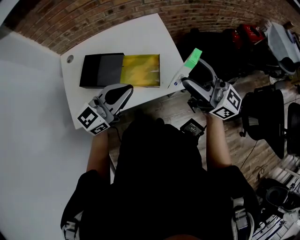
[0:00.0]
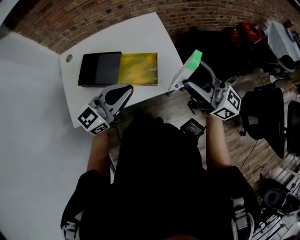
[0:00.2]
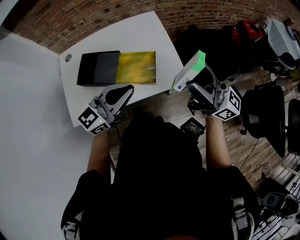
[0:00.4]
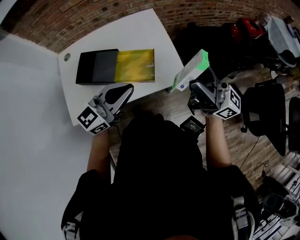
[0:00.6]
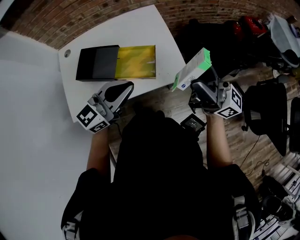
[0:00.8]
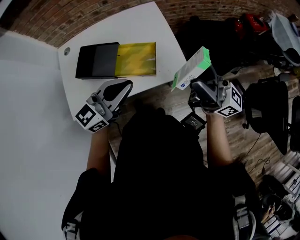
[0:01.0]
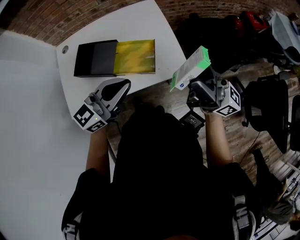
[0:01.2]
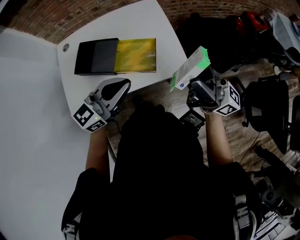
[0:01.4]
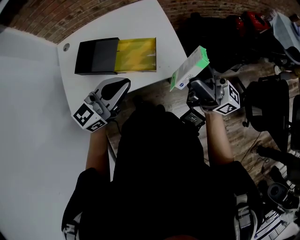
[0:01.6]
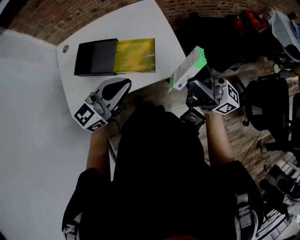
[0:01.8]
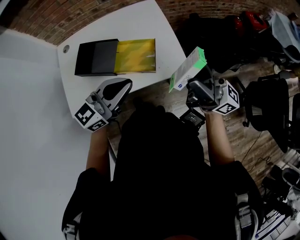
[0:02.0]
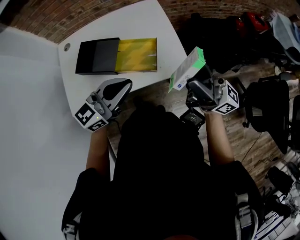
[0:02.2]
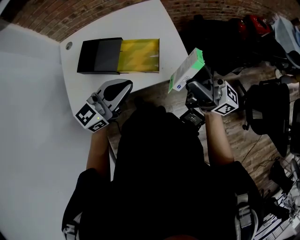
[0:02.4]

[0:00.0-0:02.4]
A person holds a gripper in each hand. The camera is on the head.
0:00.0 to 0:01.2: The right gripper is displaced to the right by about 5 cm.
0:01.2 to 0:02.4: The grippers stay close to where they were, moving slightly.

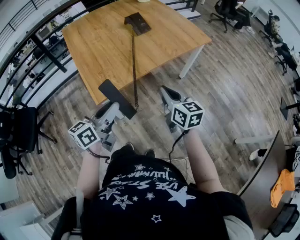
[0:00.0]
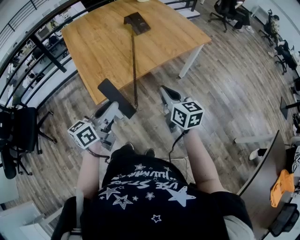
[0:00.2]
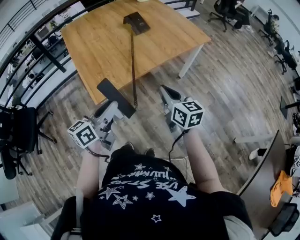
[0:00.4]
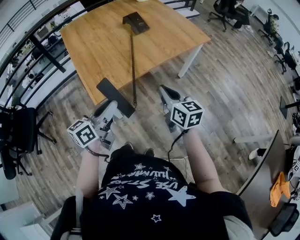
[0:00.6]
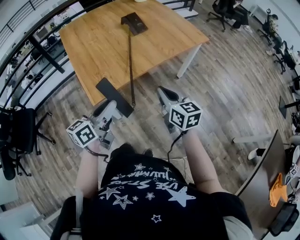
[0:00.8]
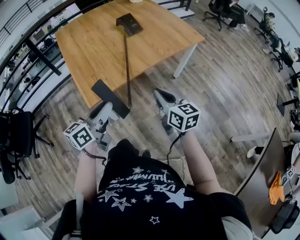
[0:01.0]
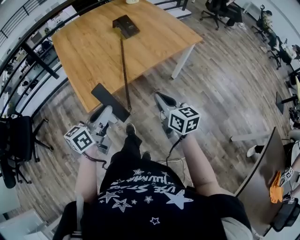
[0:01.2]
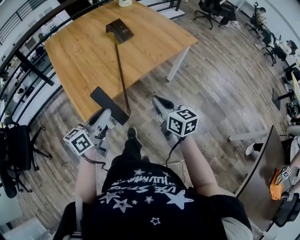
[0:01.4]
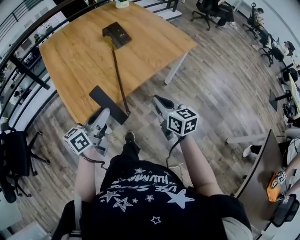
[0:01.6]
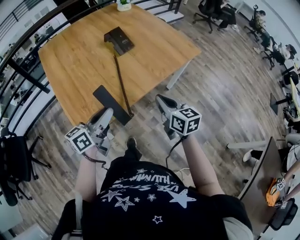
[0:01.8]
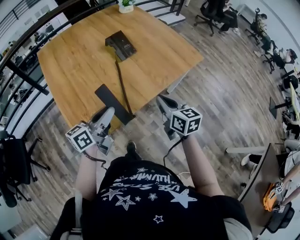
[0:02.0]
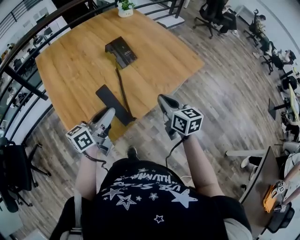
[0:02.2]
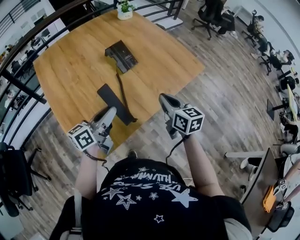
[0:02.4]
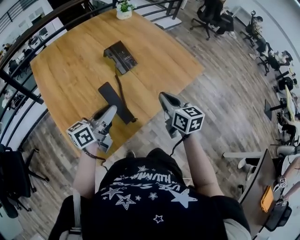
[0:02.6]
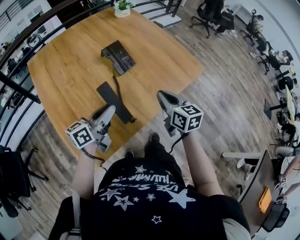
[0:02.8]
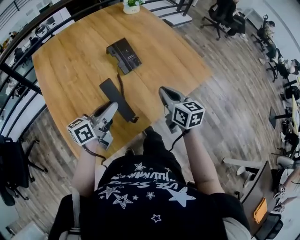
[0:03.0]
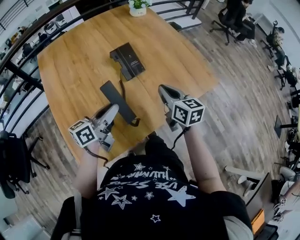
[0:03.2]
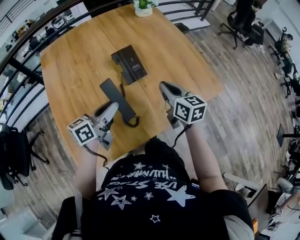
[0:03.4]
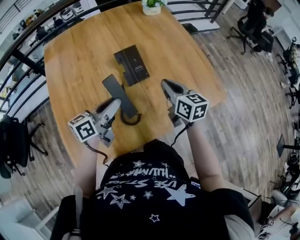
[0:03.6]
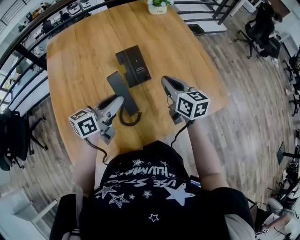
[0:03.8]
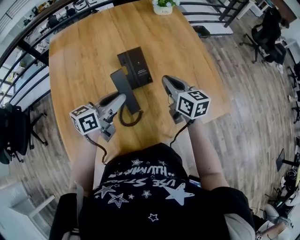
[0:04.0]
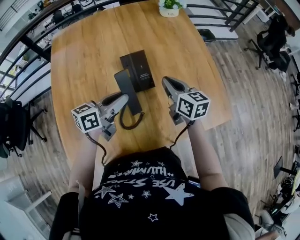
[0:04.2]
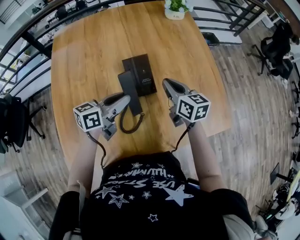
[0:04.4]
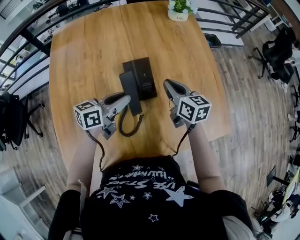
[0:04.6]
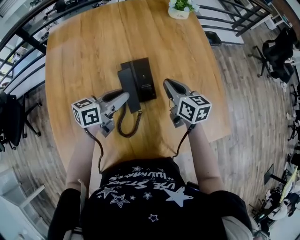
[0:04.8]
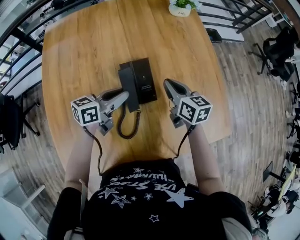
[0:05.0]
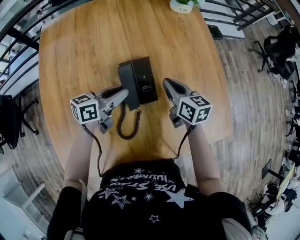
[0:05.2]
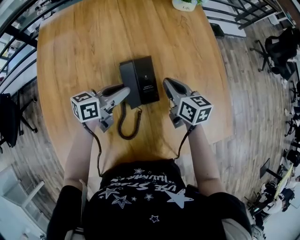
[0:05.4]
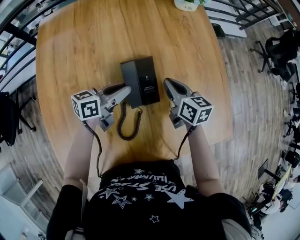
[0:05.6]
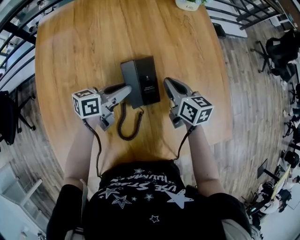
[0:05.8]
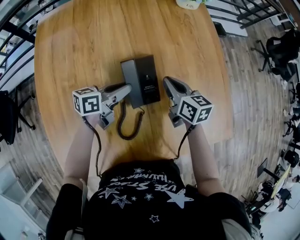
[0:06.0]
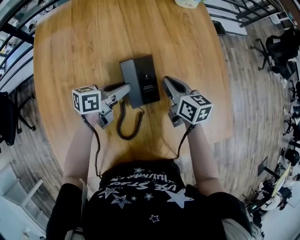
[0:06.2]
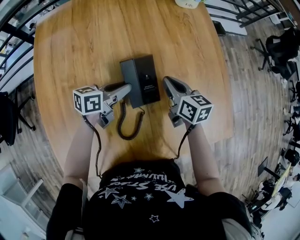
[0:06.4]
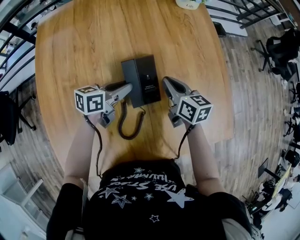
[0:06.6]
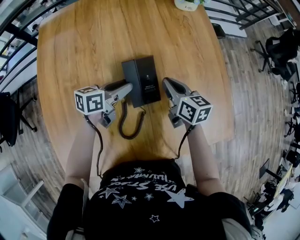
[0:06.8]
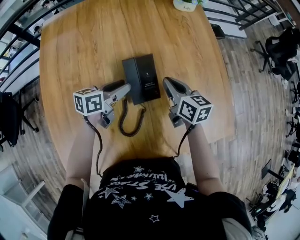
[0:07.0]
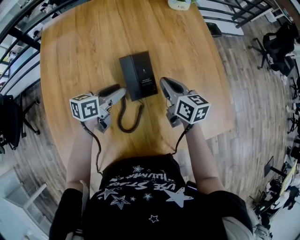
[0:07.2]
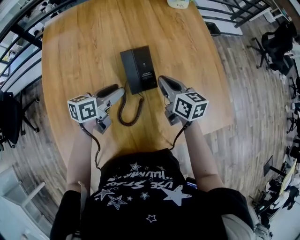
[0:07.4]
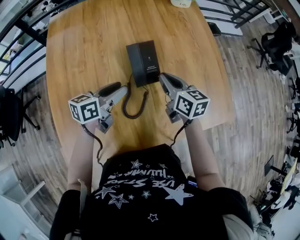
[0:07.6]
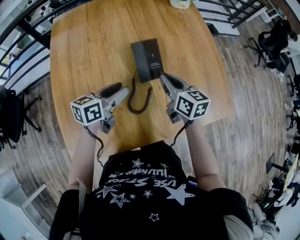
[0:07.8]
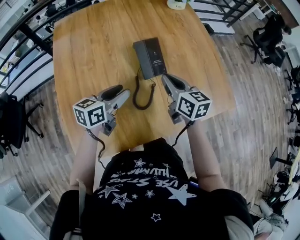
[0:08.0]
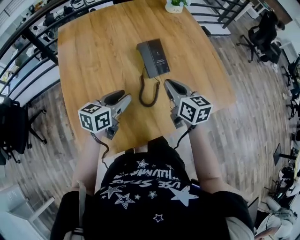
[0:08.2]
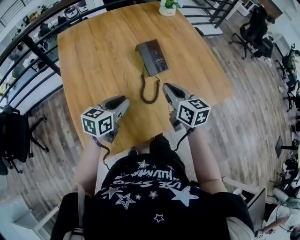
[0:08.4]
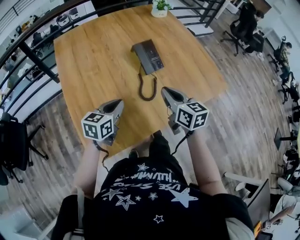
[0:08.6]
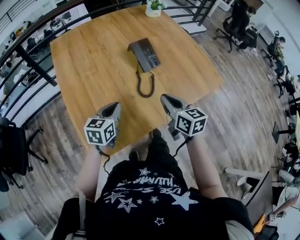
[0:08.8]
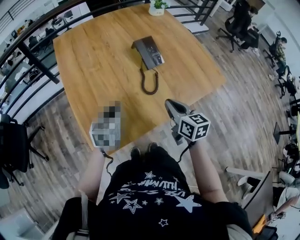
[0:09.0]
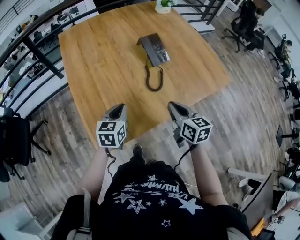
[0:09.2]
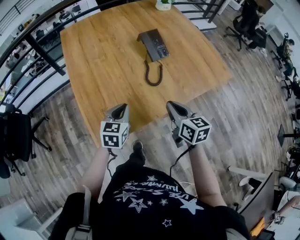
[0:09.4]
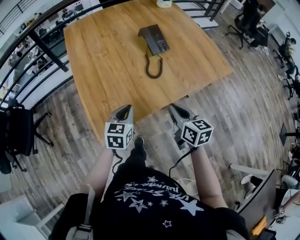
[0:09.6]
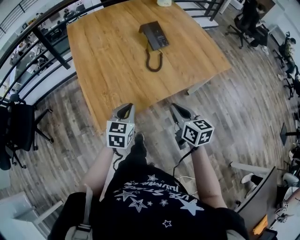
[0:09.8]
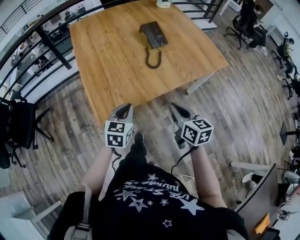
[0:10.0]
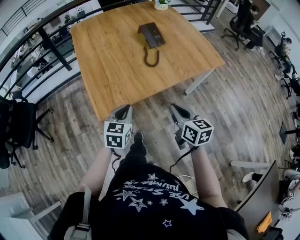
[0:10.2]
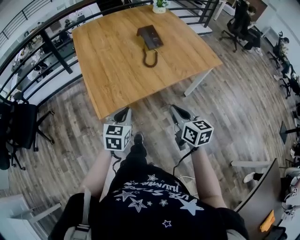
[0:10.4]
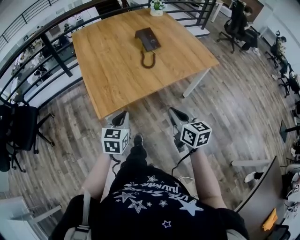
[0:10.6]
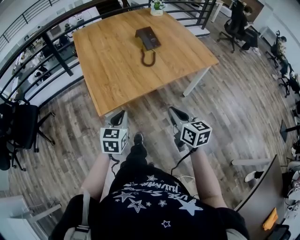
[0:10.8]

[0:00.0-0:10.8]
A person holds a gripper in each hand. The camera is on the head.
0:00.0 to 0:01.6: The two grippers go some 10 cm forward.
0:01.6 to 0:03.0: The grippers both shift forward by some 25 cm.
0:03.0 to 0:04.6: Both grippers travel together forward, about 25 cm. The right gripper swivels roughly 20 degrees.
0:04.6 to 0:06.2: The left gripper moves downward and forward, some 10 cm; the right gripper shifts some 5 cm downward.
0:06.2 to 0:07.8: Both grippers travel together backward and upward, approximately 15 cm. The left gripper opens its fingers.
0:07.8 to 0:09.2: The grippers both shift backward by some 25 cm. The left gripper swivels approximately 30 degrees, and closes its fingers.
0:09.2 to 0:10.8: The two grippers go approximately 25 cm backward.

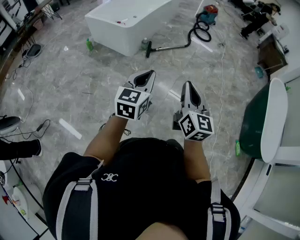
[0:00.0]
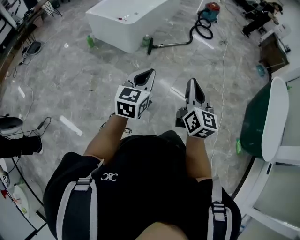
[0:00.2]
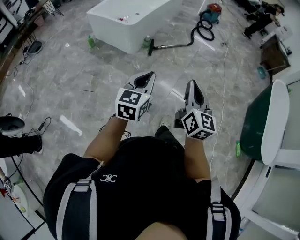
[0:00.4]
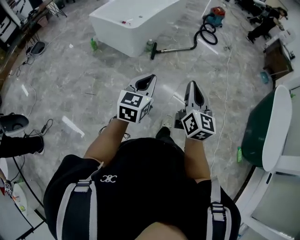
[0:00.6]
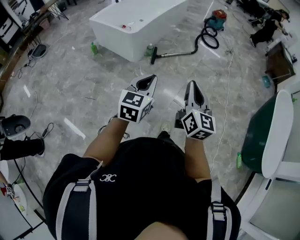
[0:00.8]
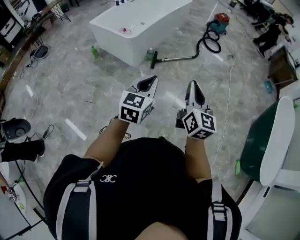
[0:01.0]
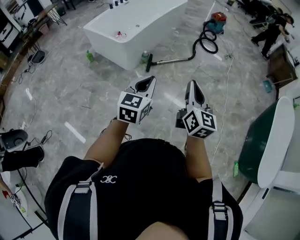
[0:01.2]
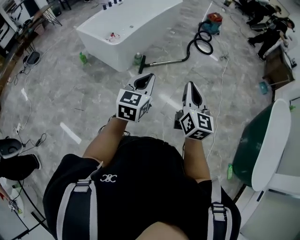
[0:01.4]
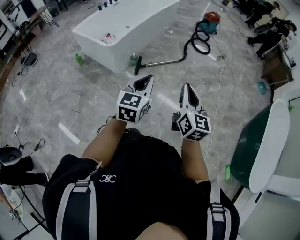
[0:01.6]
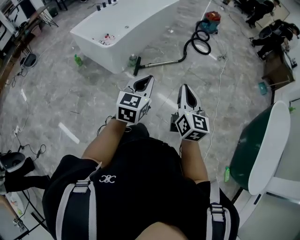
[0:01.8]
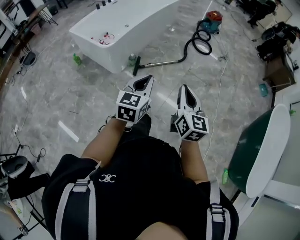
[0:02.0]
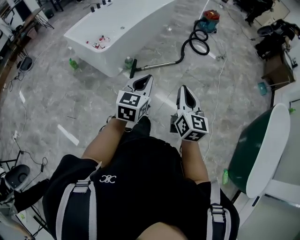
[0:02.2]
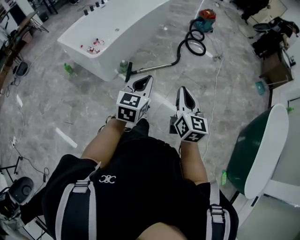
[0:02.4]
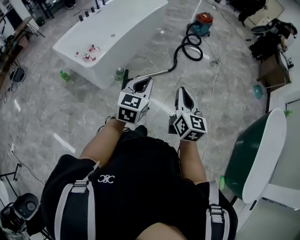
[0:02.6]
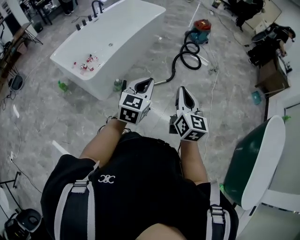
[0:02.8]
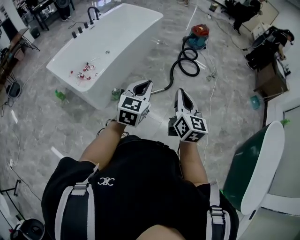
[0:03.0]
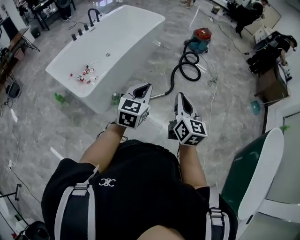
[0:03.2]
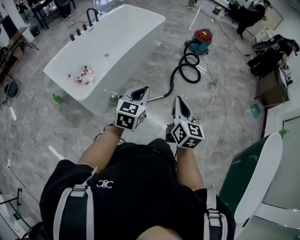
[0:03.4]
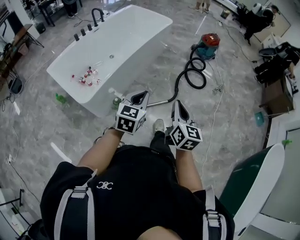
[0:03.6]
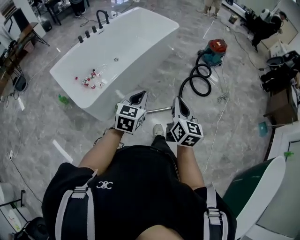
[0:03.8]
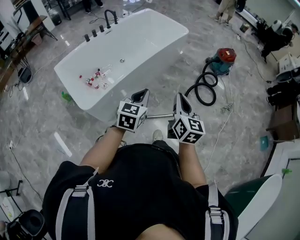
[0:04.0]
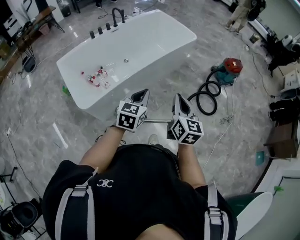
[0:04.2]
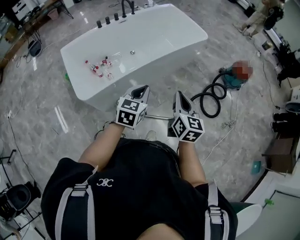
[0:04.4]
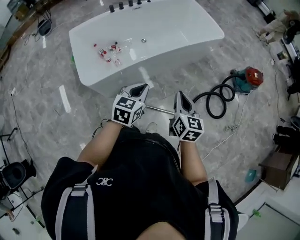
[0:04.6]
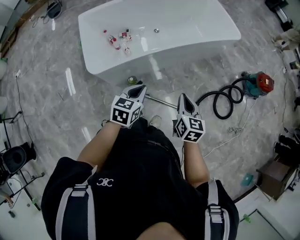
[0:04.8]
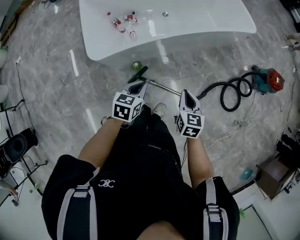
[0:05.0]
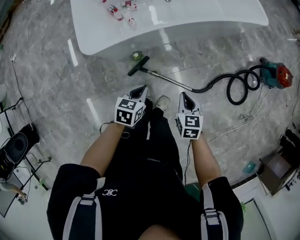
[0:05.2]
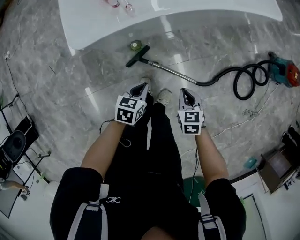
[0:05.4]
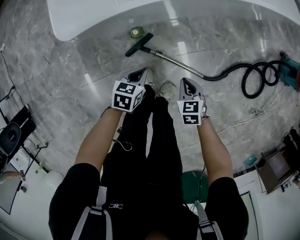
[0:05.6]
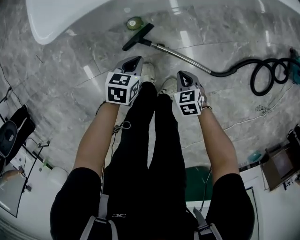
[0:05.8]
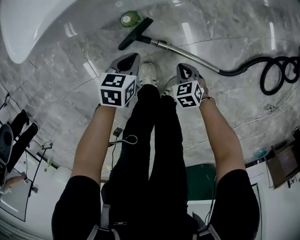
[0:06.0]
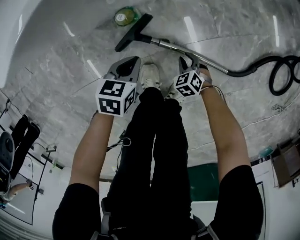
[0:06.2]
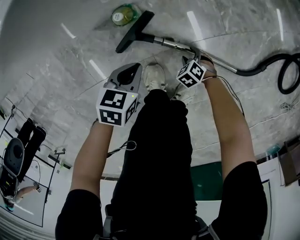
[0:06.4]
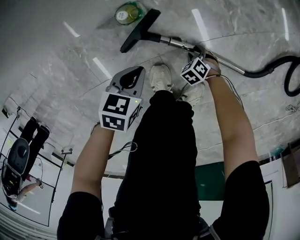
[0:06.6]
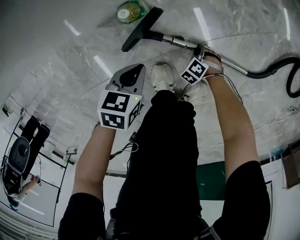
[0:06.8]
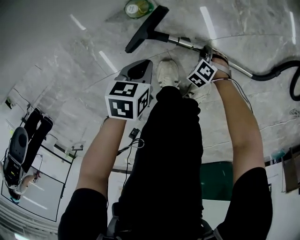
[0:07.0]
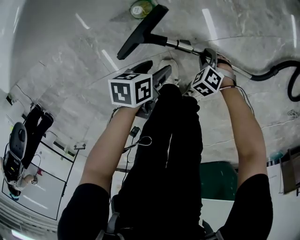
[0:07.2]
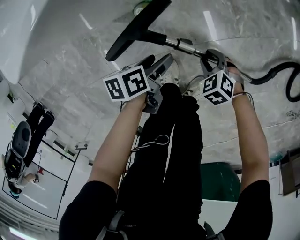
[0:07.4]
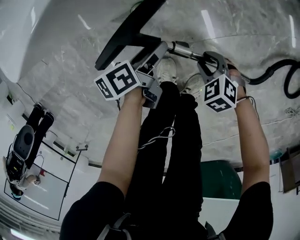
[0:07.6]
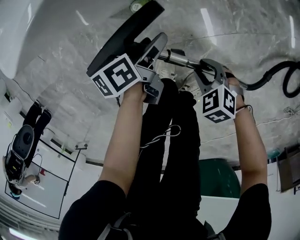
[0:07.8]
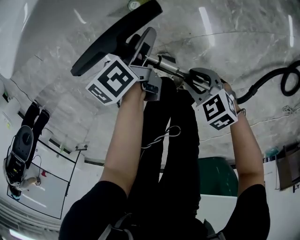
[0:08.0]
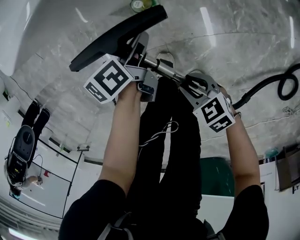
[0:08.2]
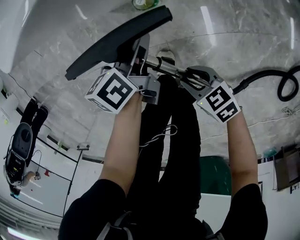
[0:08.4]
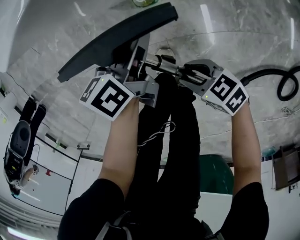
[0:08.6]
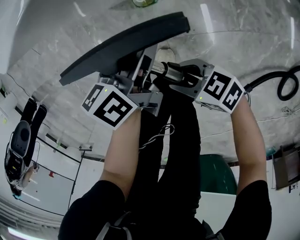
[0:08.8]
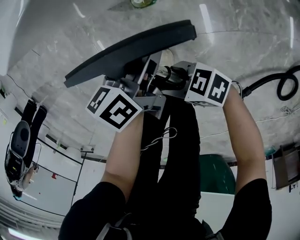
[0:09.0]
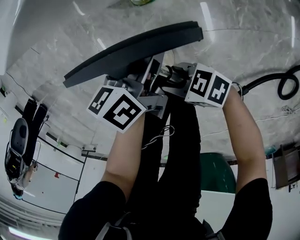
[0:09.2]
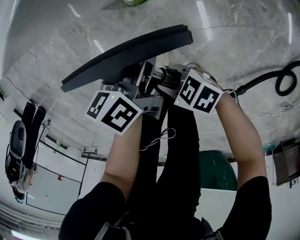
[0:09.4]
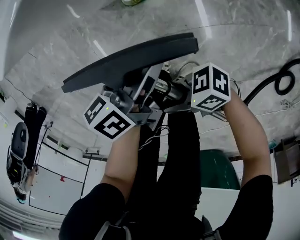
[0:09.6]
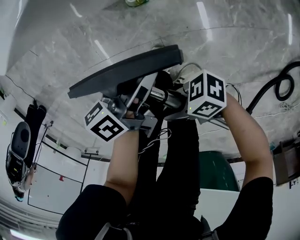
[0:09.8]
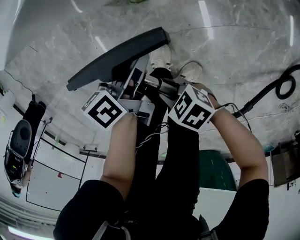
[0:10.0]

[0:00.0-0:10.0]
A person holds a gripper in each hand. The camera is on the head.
0:00.0 to 0:01.4: Both grippers move forward and to the right, some 35 cm.
0:01.4 to 0:02.8: Both grippers move forward, about 35 cm.
0:02.8 to 0:04.2: The two grippers travel together, forward, roughly 40 cm. The left gripper swivels approximately 20 degrees.
0:04.2 to 0:05.8: The grippers both shift downward by roughly 60 cm. The right gripper tips its fingers downward by about 50 degrees; the left gripper tips its fingers downward by some 30 degrees.
0:05.8 to 0:07.2: Both grippers travel together downward, roughly 20 cm. The left gripper rotates approximately 30 degrees, and opens its fingers. The right gripper turns by approximately 40 degrees, and opens.
0:07.2 to 0:08.6: The right gripper travels upward by roughly 15 cm, and tips its fingers upward by about 40 degrees. Meanwhile the left gripper changes place by about 20 cm, swivels roughly 50 degrees, and closes its fingers.
0:08.6 to 0:10.0: The left gripper ends up approximately 5 cm from where it was; the right gripper reaches some 10 cm upward, then returns, and closes.
